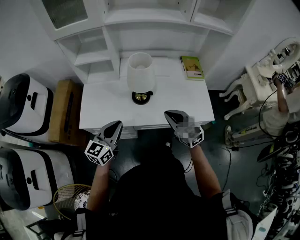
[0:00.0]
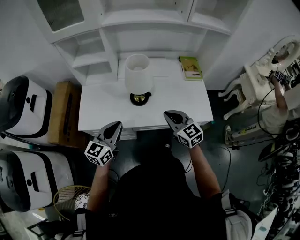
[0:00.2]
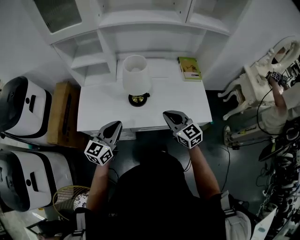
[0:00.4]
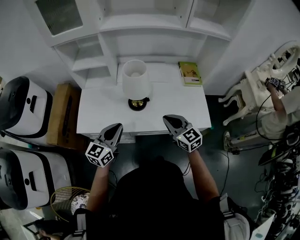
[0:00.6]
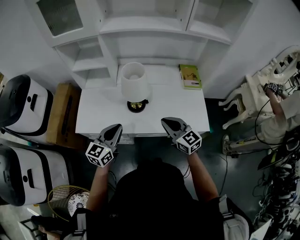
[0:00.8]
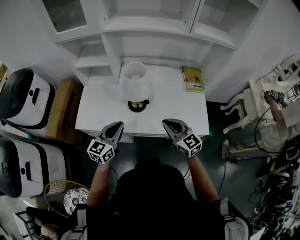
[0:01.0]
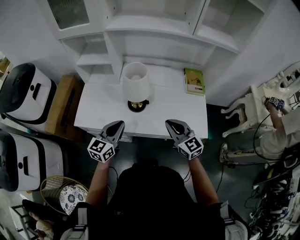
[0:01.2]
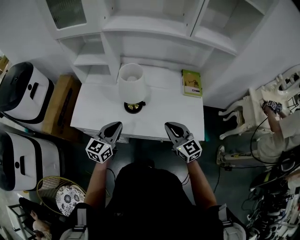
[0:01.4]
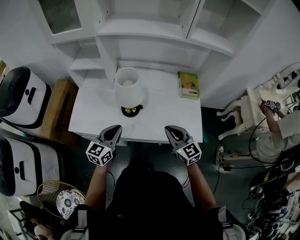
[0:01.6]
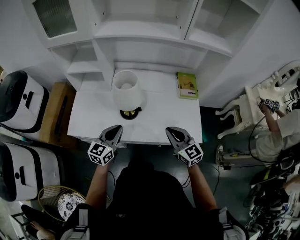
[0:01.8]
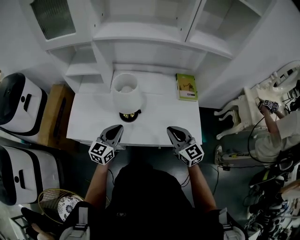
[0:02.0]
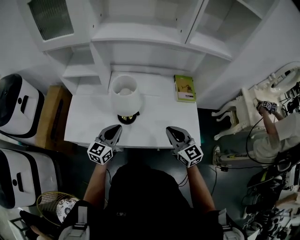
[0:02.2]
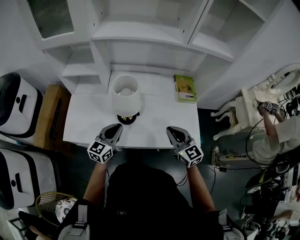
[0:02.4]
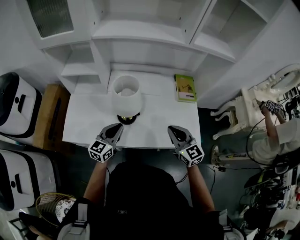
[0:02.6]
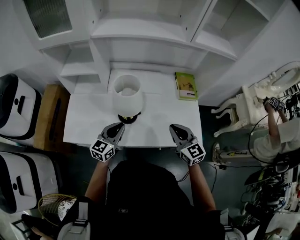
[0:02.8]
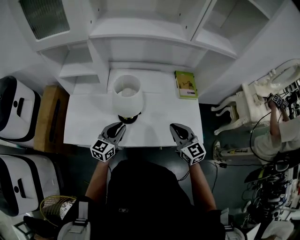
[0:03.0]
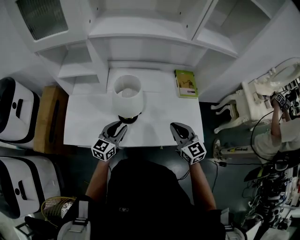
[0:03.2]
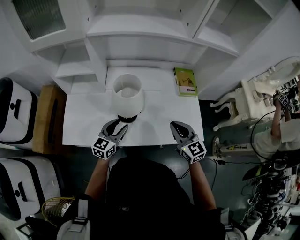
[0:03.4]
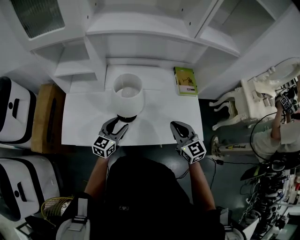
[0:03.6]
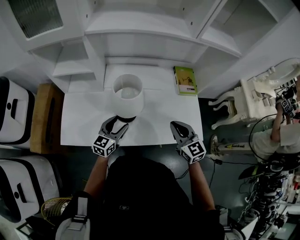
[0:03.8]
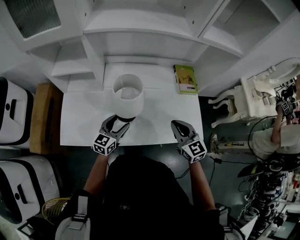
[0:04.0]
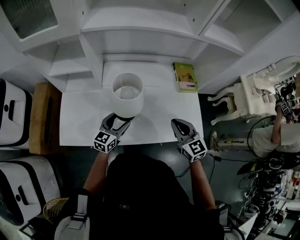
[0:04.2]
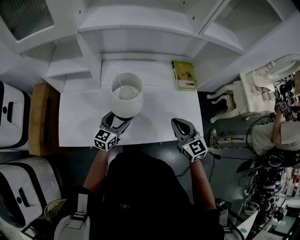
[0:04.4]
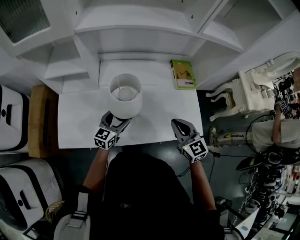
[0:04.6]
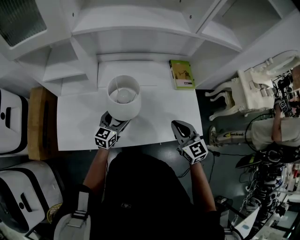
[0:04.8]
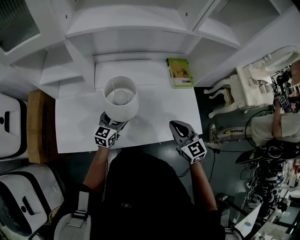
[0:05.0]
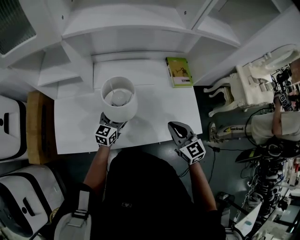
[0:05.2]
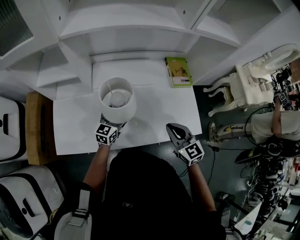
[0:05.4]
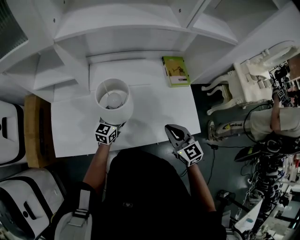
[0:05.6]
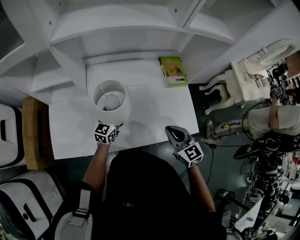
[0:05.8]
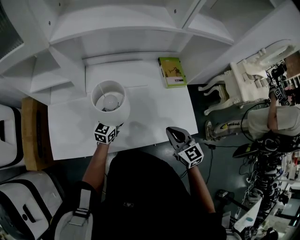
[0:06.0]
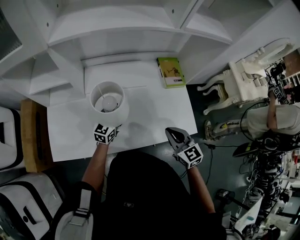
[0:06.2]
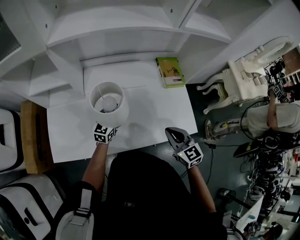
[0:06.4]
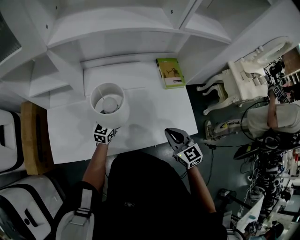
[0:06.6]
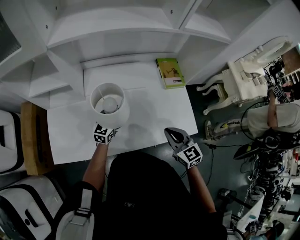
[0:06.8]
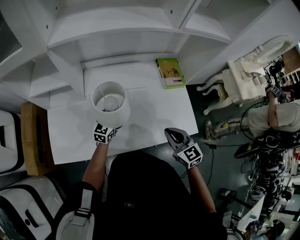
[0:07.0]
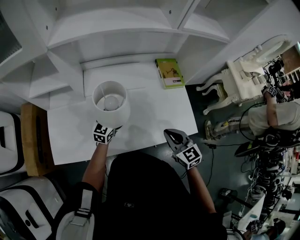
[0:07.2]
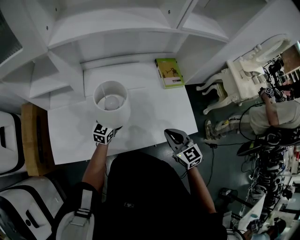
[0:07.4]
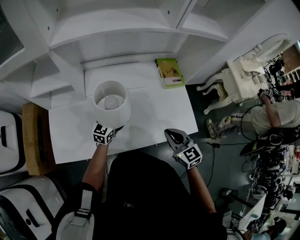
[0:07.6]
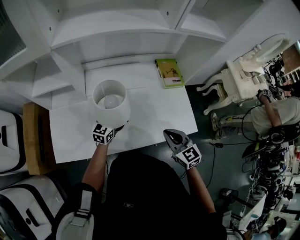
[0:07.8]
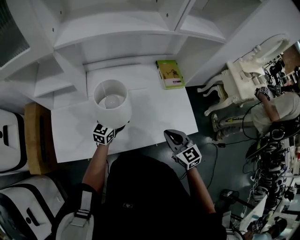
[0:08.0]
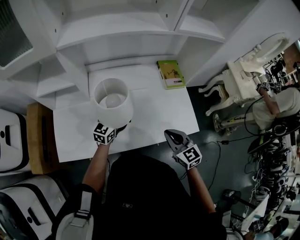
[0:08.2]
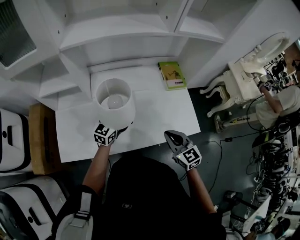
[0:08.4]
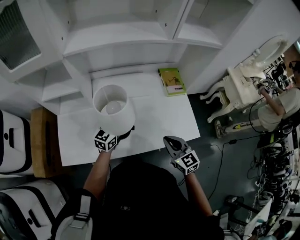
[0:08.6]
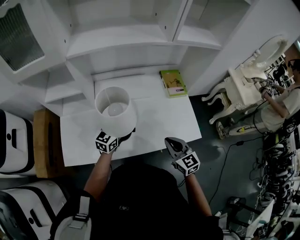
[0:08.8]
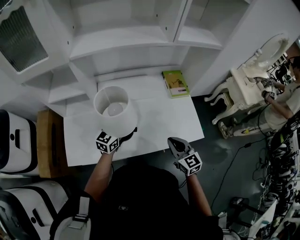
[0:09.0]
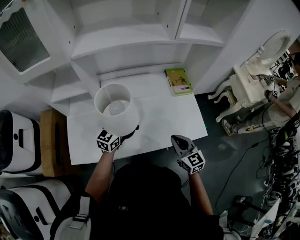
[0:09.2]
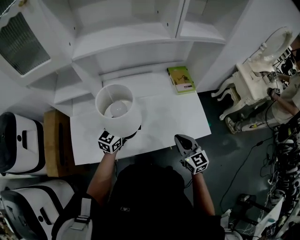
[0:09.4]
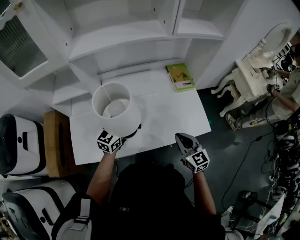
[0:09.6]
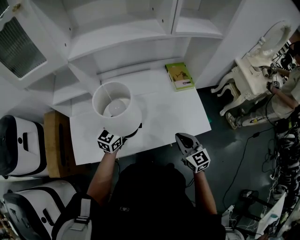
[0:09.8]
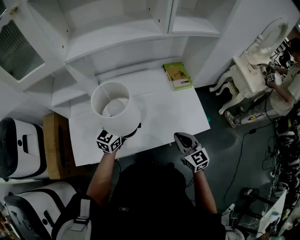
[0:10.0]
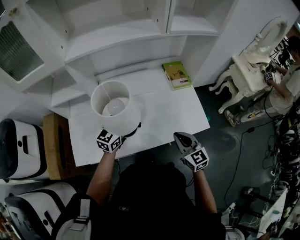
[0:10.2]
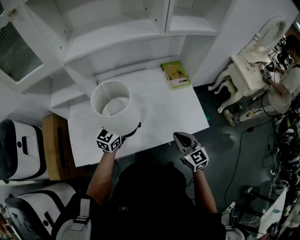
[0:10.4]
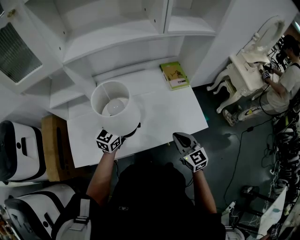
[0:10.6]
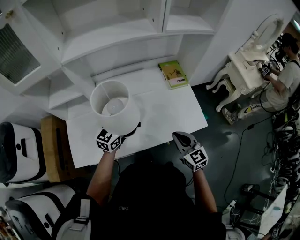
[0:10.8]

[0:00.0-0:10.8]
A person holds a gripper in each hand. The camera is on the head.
0:00.0 to 0:01.6: The two grippers go some 10 cm to the right.
0:01.6 to 0:03.0: The left gripper is displaced forward and downward by approximately 10 cm. The right gripper moves forward, roughly 5 cm.
0:03.0 to 0:04.6: The left gripper moves forward and downward, approximately 10 cm, and opens its fingers.
0:04.6 to 0:06.2: The left gripper moves forward, approximately 5 cm. Meanwhile the right gripper ends up roughly 5 cm from where it was.
0:06.2 to 0:07.8: The left gripper closes up.
0:07.8 to 0:09.2: The left gripper heads upward, covering some 10 cm.
0:09.2 to 0:10.8: The grippers move only a little.

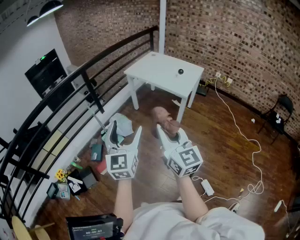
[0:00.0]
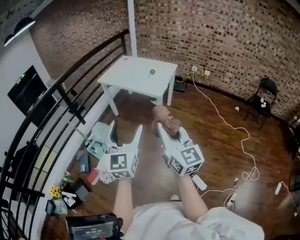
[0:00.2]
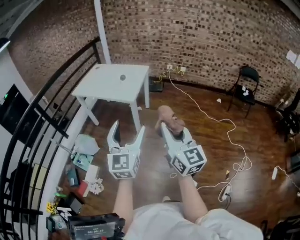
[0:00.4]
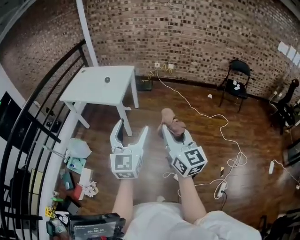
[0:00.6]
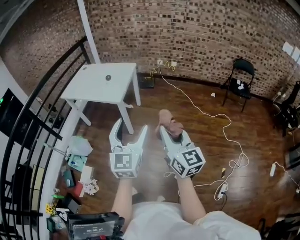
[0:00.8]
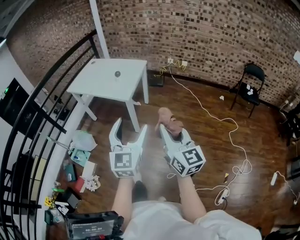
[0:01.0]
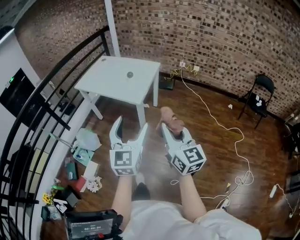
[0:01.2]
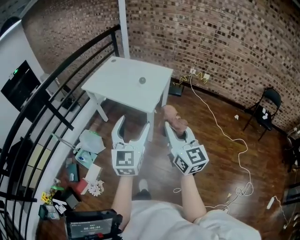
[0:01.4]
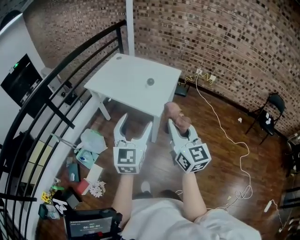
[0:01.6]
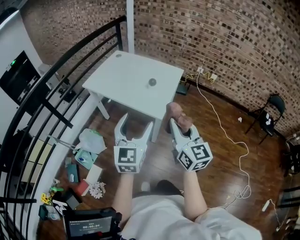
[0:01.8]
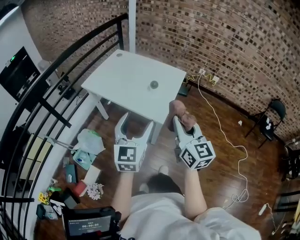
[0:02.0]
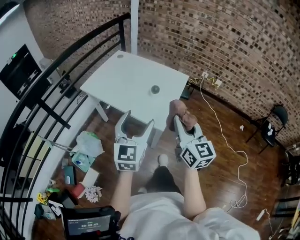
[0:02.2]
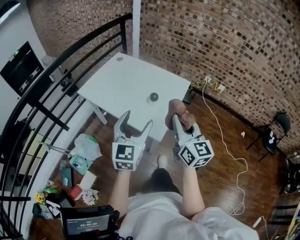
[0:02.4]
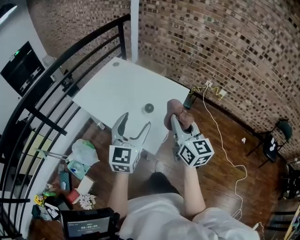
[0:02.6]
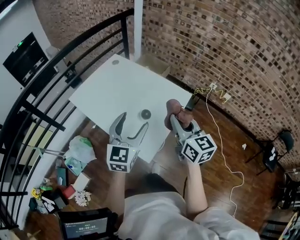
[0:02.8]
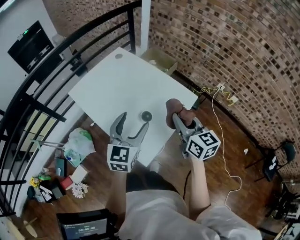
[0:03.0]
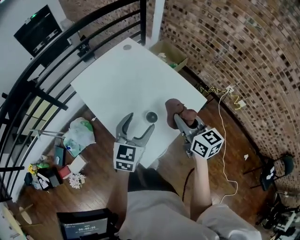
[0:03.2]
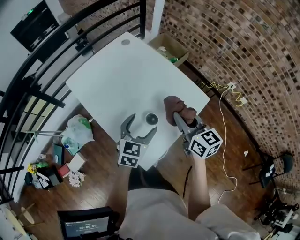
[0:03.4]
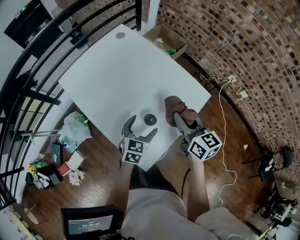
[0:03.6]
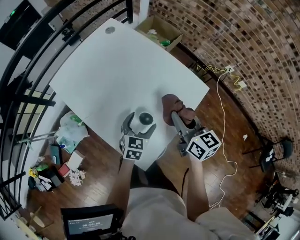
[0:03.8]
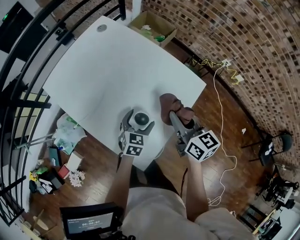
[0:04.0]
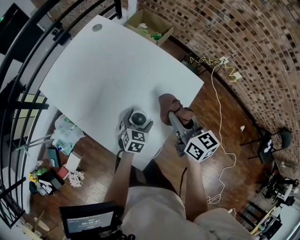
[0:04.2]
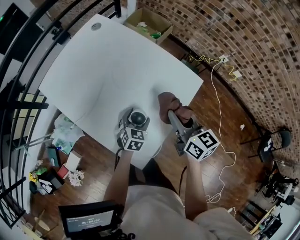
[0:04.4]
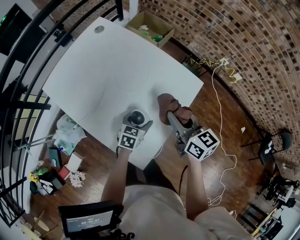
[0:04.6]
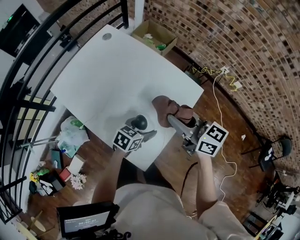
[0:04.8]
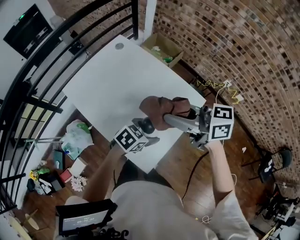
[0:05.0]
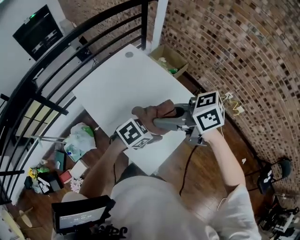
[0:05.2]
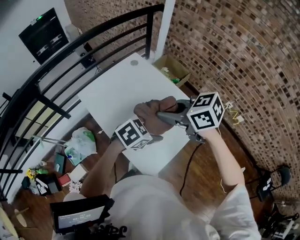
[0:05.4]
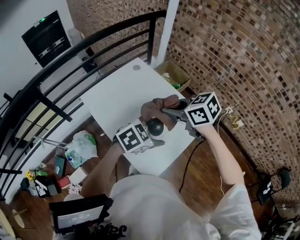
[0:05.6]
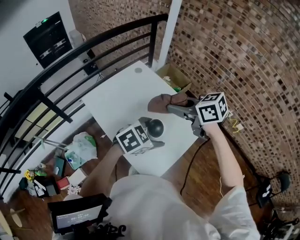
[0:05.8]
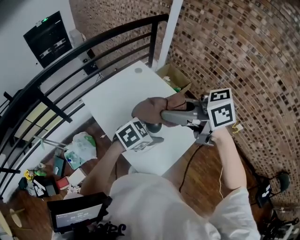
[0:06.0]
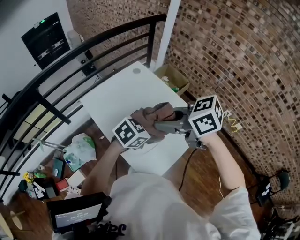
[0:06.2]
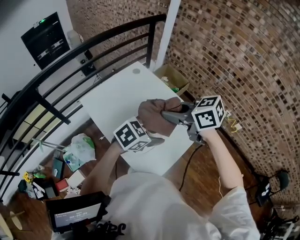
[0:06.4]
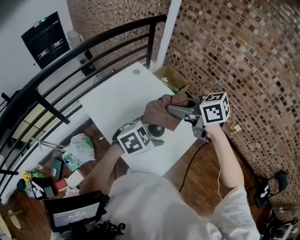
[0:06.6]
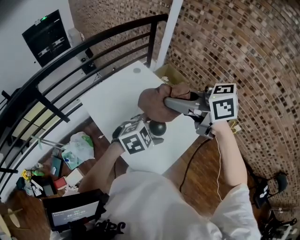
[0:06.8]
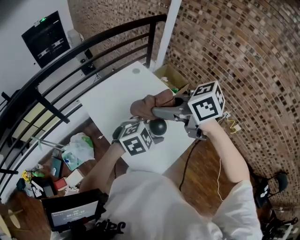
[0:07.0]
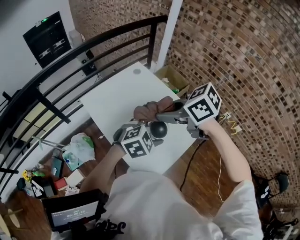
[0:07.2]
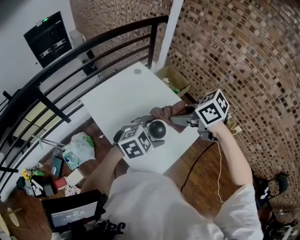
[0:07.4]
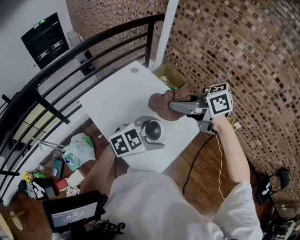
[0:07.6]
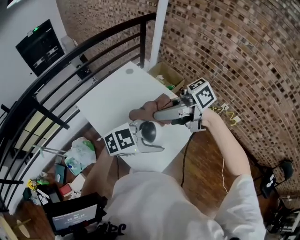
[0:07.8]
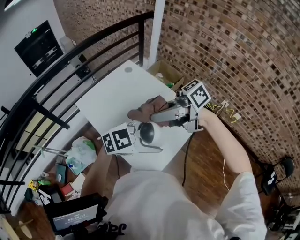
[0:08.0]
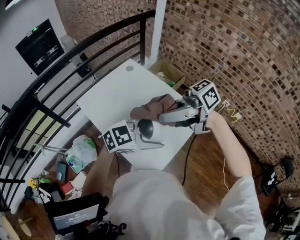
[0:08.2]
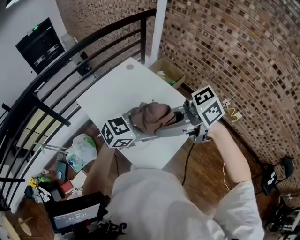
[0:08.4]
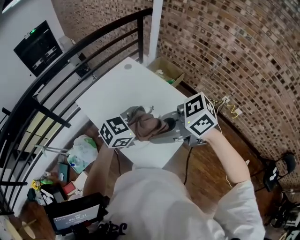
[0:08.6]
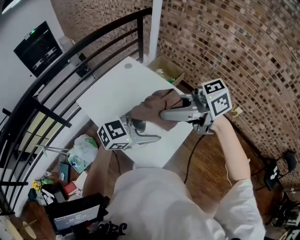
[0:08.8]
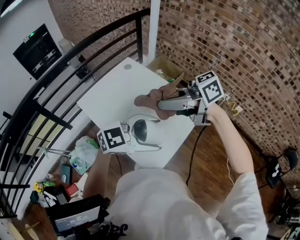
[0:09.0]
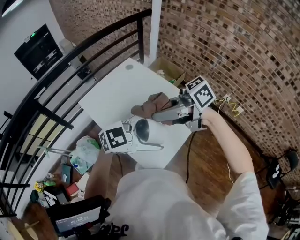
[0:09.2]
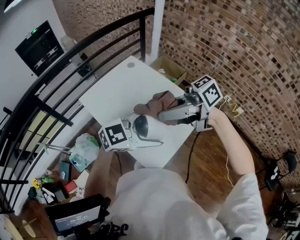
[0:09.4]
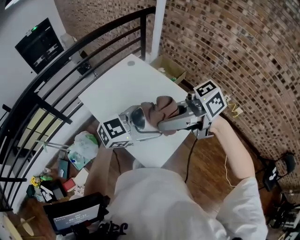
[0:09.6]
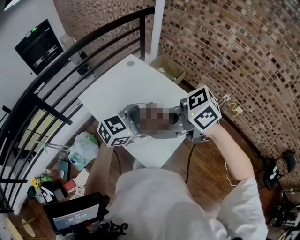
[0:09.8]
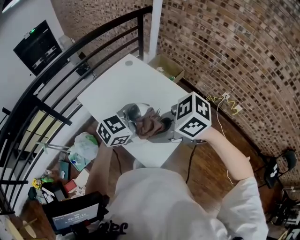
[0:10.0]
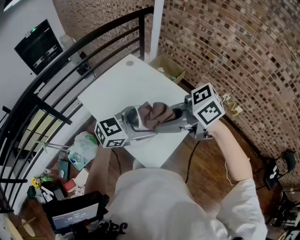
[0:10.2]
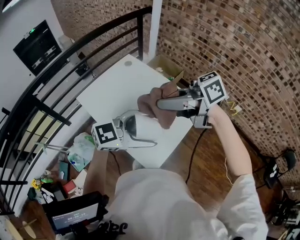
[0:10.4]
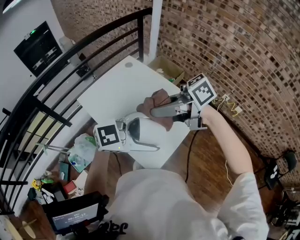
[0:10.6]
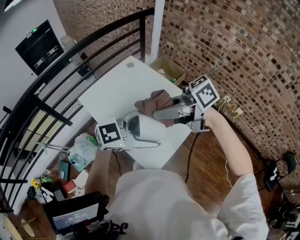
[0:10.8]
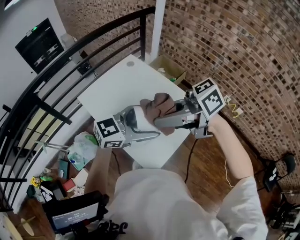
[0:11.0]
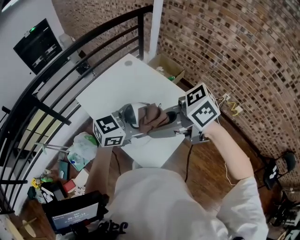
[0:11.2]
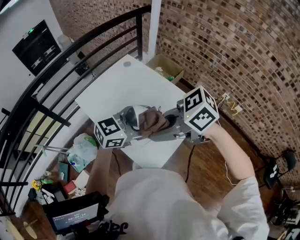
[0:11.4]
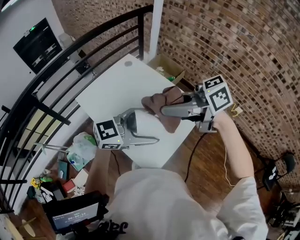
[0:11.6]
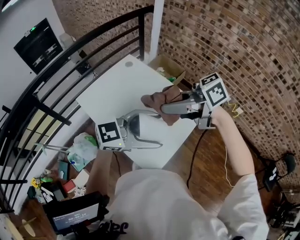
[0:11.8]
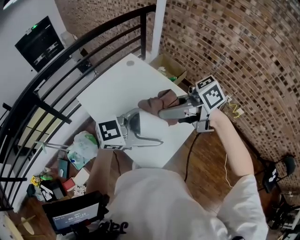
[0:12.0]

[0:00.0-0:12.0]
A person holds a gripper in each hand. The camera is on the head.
0:00.0 to 0:01.6: The two grippers go about 40 cm forward and to the right.
0:01.6 to 0:03.0: The two grippers travel together, forward, about 50 cm. The right gripper turns by about 30 degrees.
0:03.0 to 0:04.4: The left gripper goes some 35 cm downward, and angles its fingers downward, by roughly 30 degrees. Meanwhile the right gripper travels downward and forward by approximately 15 cm.
0:04.4 to 0:06.0: Both grippers move upward, some 30 cm. The right gripper turns by approximately 60 degrees, while the left gripper swivels roughly 30 degrees.
0:06.0 to 0:07.6: The right gripper goes up and down, some 10 cm each way, reversing 3 times.
0:07.6 to 0:09.0: The left gripper shifts by about 5 cm, and rotates roughly 20 degrees.

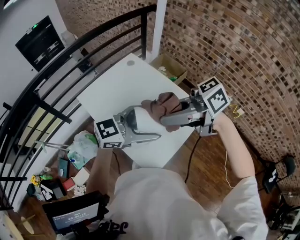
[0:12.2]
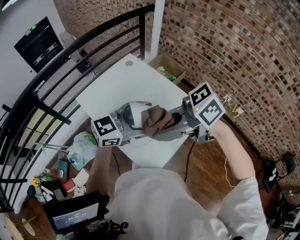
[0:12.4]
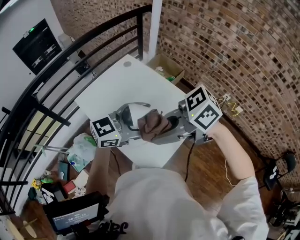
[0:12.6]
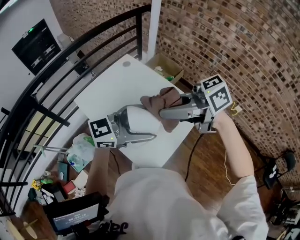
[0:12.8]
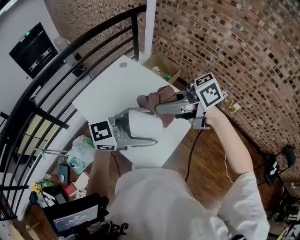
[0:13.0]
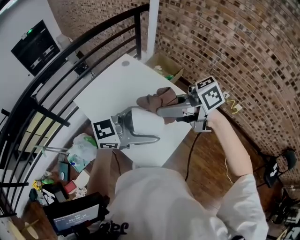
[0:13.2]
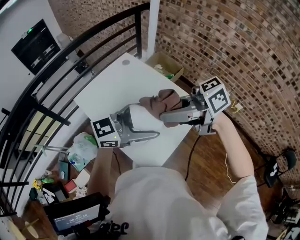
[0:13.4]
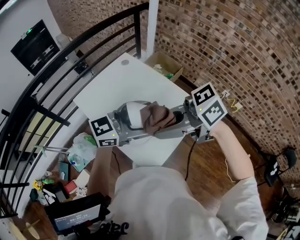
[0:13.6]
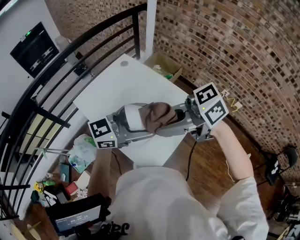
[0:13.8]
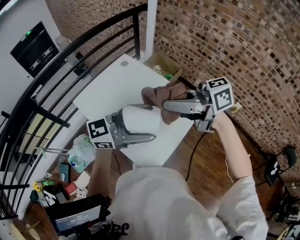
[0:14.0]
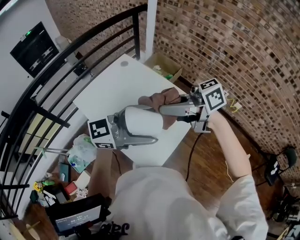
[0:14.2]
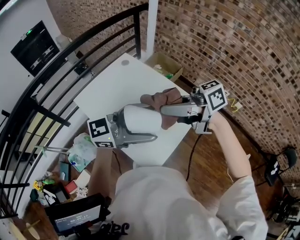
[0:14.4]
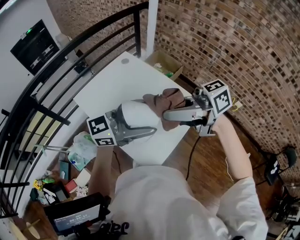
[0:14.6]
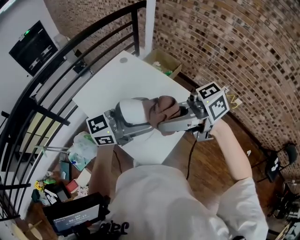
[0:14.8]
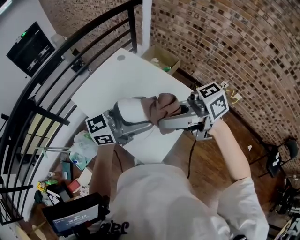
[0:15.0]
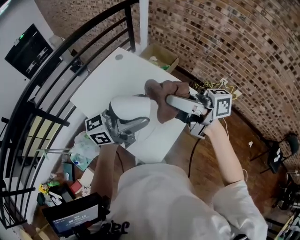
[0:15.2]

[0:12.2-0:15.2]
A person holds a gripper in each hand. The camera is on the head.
0:13.8 to 0:15.2: The left gripper changes its angle by some 20 degrees. The right gripper shifts by roughly 10 cm, and changes its angle by some 40 degrees.
